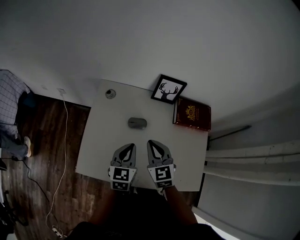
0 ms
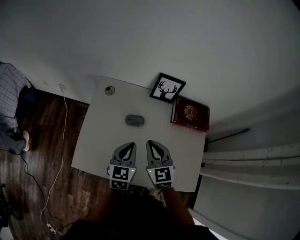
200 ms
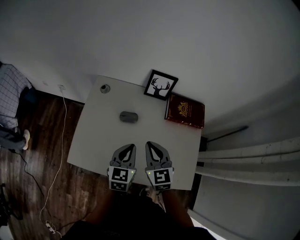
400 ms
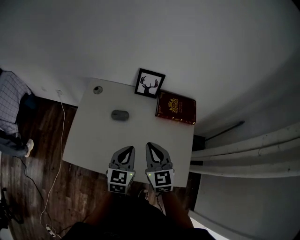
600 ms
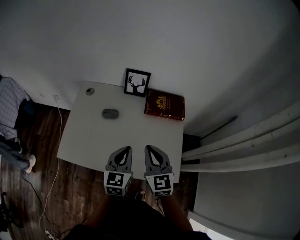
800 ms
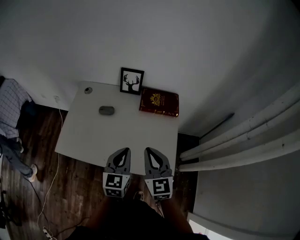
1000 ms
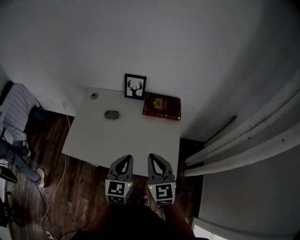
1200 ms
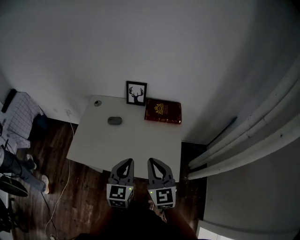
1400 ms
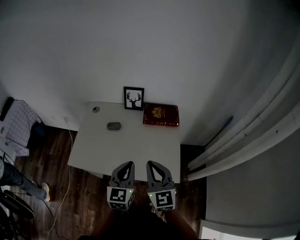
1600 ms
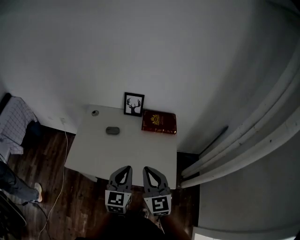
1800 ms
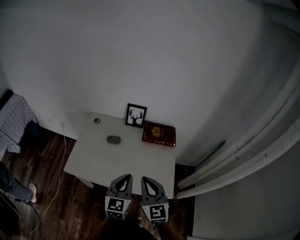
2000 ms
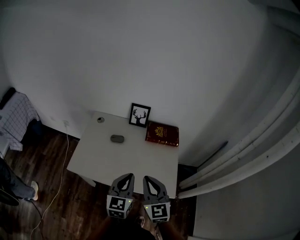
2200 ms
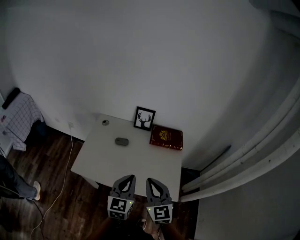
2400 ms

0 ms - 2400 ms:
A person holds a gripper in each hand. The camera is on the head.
0 ms - 1200 ms: The grippers both shift backward, to the right and upward by some 30 cm.
1200 ms - 2400 ms: The left gripper moves upward and to the left, some 10 cm. Meanwhile the right gripper travels to the left and upward by some 10 cm.

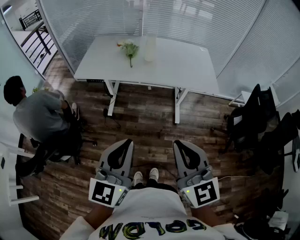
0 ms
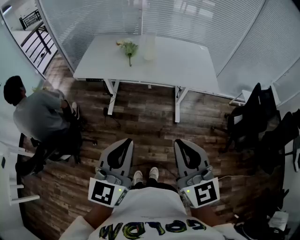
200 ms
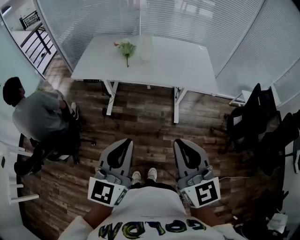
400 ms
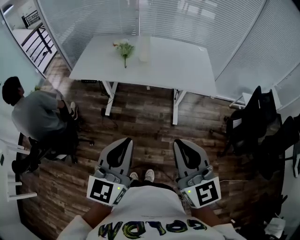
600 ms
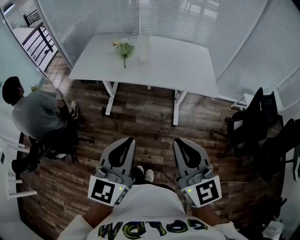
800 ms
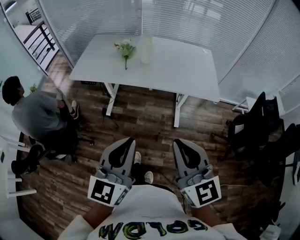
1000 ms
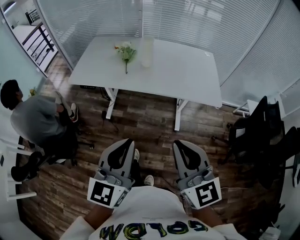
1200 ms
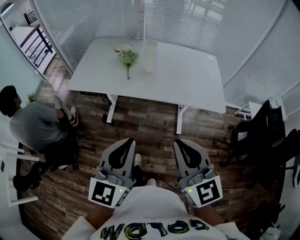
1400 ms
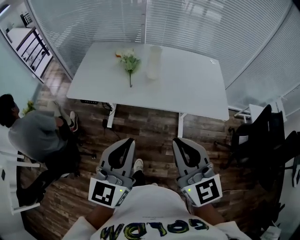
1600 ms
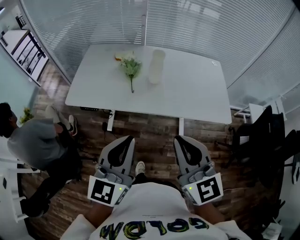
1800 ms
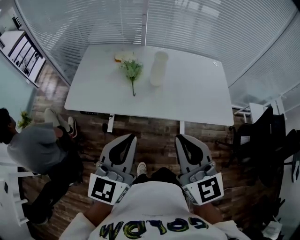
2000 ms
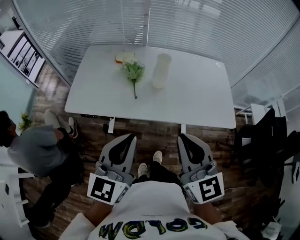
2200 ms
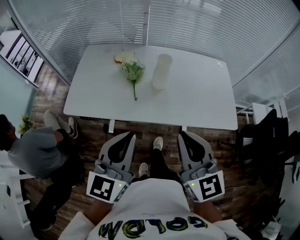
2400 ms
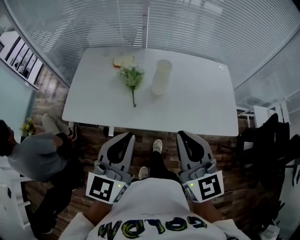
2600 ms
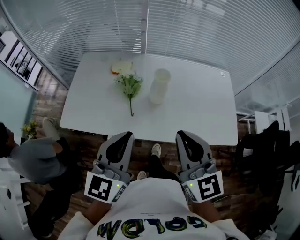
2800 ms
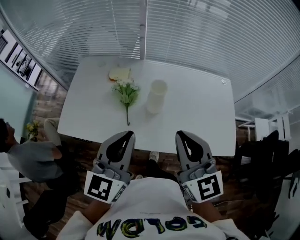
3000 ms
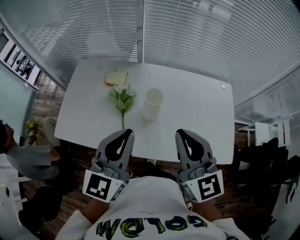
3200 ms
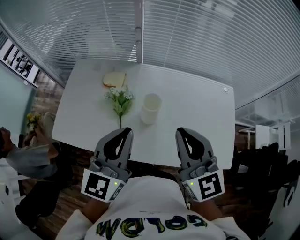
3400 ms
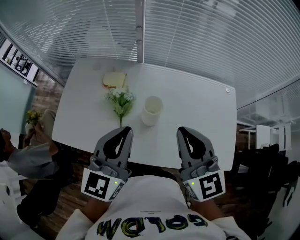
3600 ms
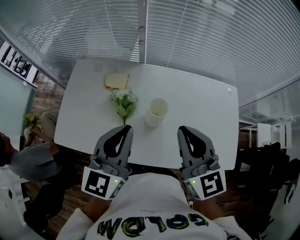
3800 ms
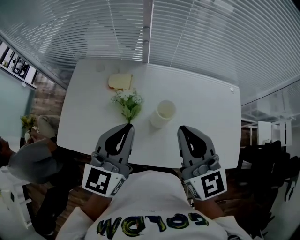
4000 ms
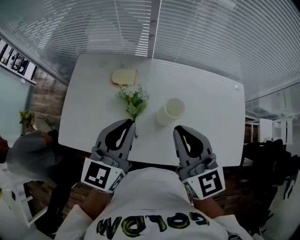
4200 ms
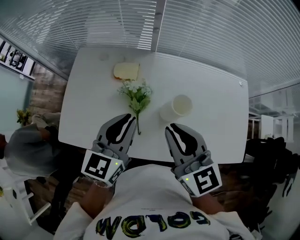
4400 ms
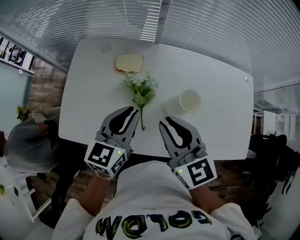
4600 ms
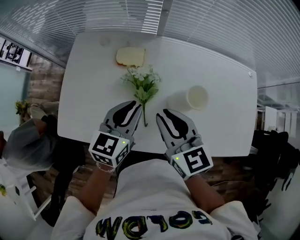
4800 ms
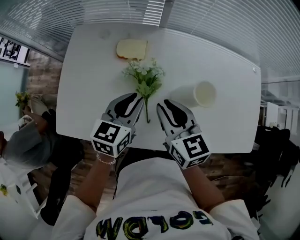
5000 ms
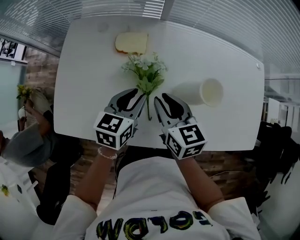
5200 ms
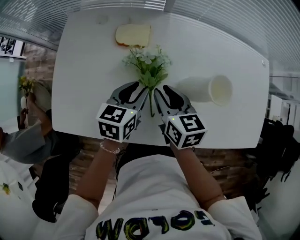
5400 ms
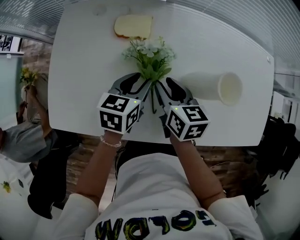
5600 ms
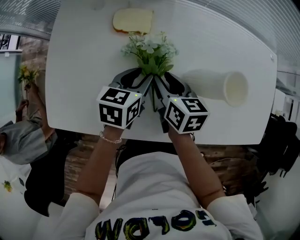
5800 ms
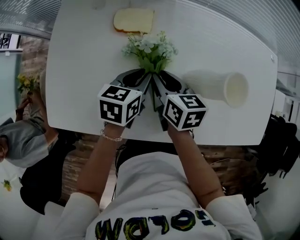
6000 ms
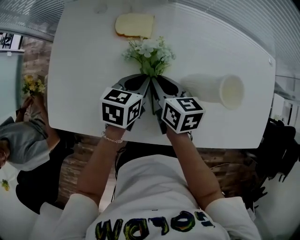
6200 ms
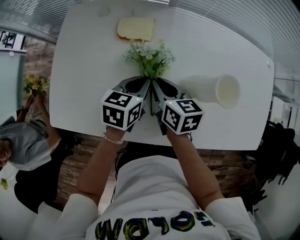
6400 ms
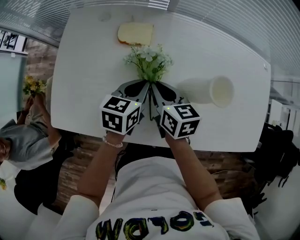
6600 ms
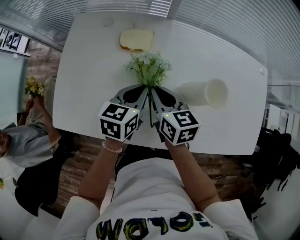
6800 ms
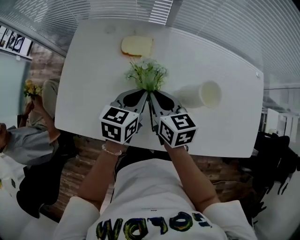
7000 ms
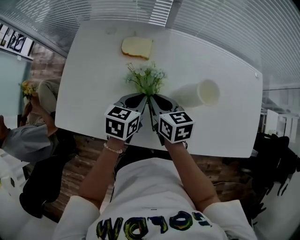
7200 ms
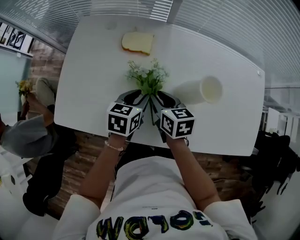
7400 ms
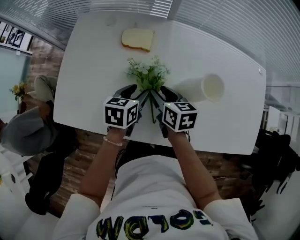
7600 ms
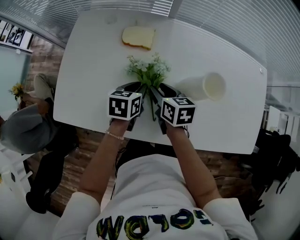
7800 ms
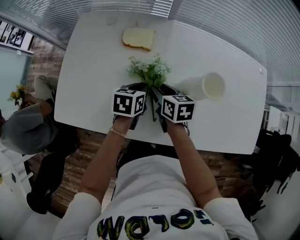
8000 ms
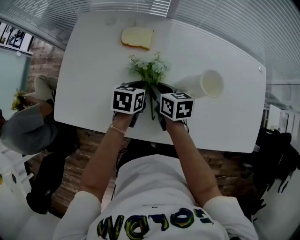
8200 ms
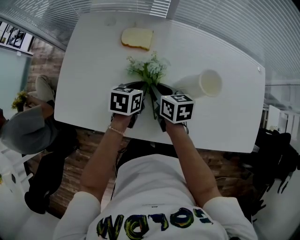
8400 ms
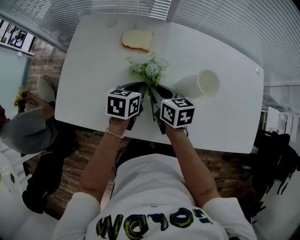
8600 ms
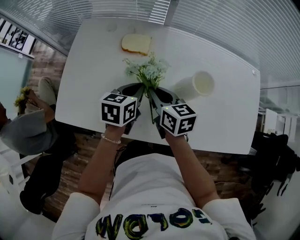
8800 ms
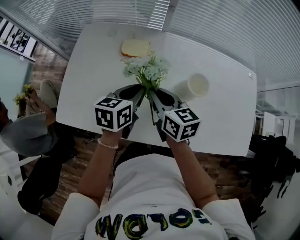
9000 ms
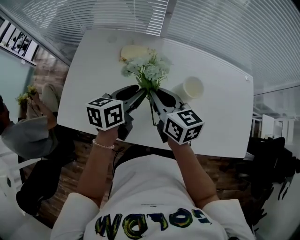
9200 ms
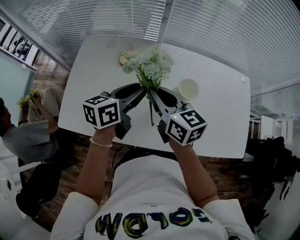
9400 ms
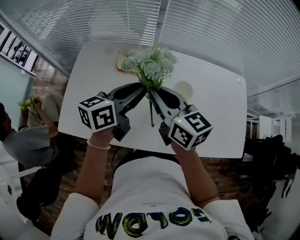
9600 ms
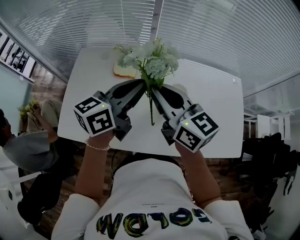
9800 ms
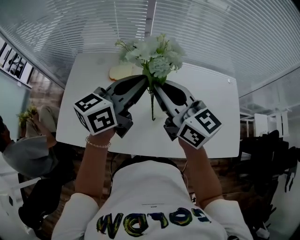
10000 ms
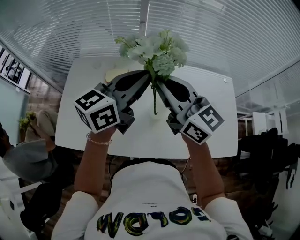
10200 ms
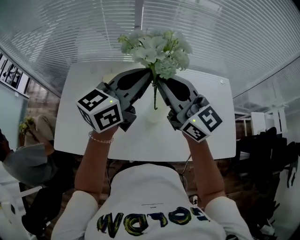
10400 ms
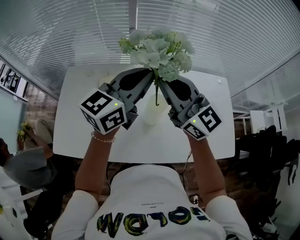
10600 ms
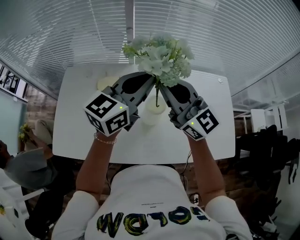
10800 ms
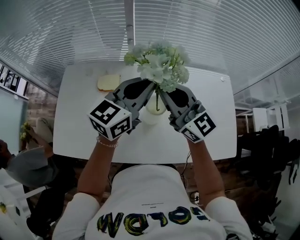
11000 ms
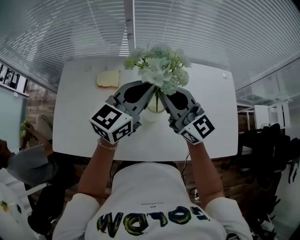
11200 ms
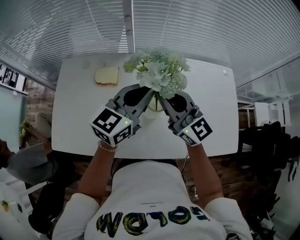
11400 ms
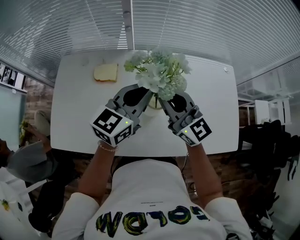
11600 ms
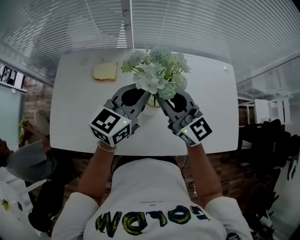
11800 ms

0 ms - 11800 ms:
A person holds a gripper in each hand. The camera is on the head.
0 ms - 1400 ms: The two grippers go approximately 20 cm forward.
1400 ms - 3000 ms: Both grippers move forward, some 40 cm.
3000 ms - 4400 ms: The left gripper travels forward and downward by approximately 20 cm. Meanwhile the right gripper shifts approximately 20 cm forward, to the left and downward.
4400 ms - 6000 ms: Both grippers travel together downward, approximately 25 cm. The right gripper swivels some 40 degrees, while the left gripper changes its angle by approximately 30 degrees.
7400 ms - 8800 ms: The right gripper closes up, while the left gripper closes.
8800 ms - 10400 ms: Both grippers travel together upward, some 30 cm. The left gripper points its fingers approximately 40 degrees further upward, and opens and closes again; the right gripper points its fingers approximately 40 degrees further upward.
10400 ms - 11800 ms: Both grippers move downward and to the right, roughly 10 cm.

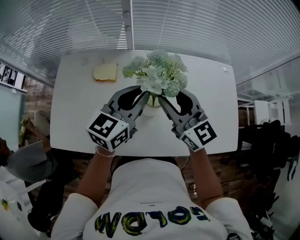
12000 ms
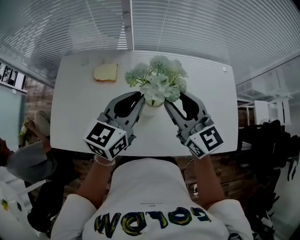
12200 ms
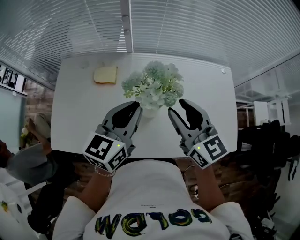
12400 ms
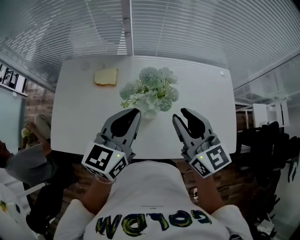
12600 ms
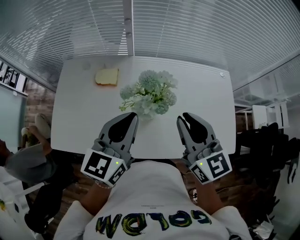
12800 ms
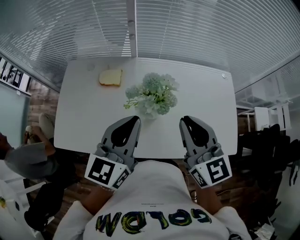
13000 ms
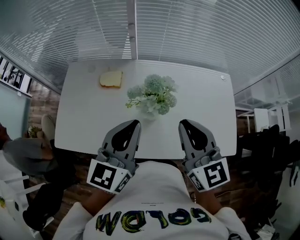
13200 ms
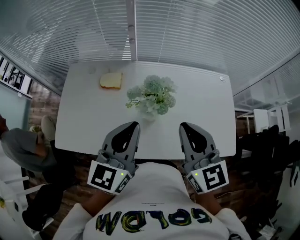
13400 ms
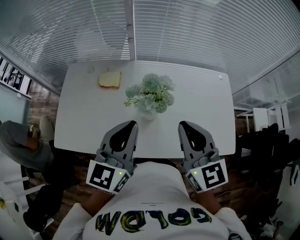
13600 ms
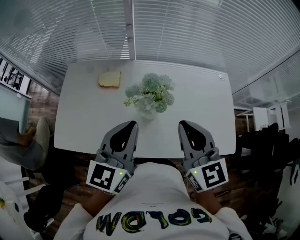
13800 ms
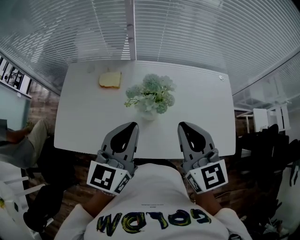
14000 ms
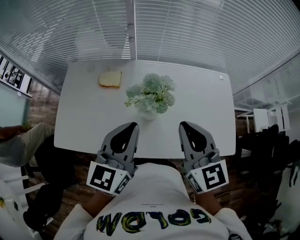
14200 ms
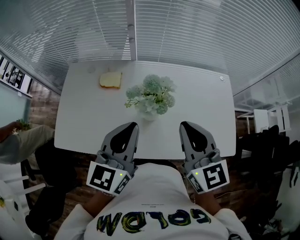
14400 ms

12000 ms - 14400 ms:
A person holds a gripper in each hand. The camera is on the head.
12000 ms - 13200 ms: The two grippers go some 15 cm backward and upward. The right gripper closes.
13200 ms - 14400 ms: The two grippers keep their place.

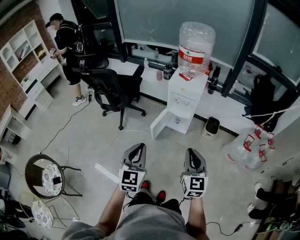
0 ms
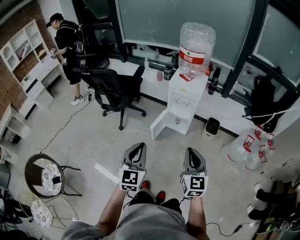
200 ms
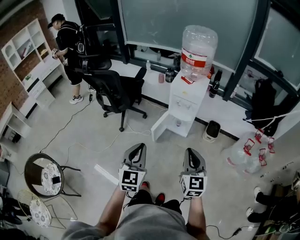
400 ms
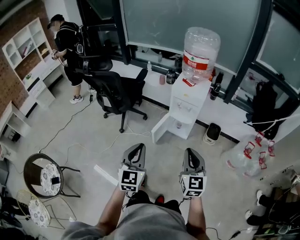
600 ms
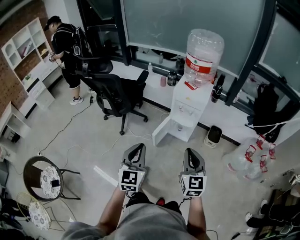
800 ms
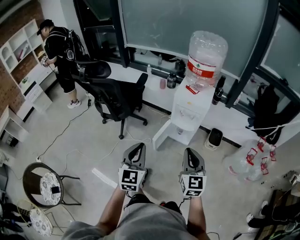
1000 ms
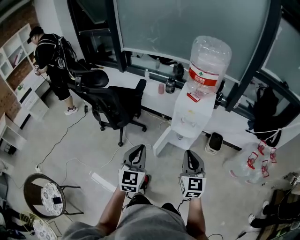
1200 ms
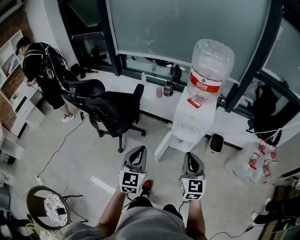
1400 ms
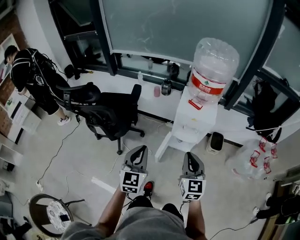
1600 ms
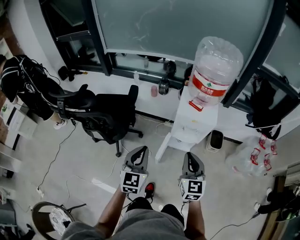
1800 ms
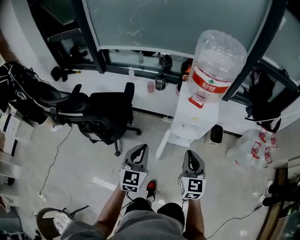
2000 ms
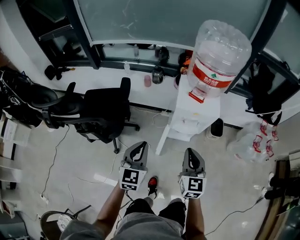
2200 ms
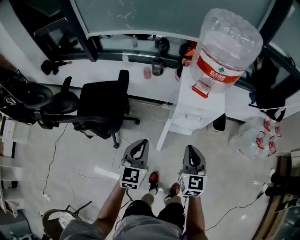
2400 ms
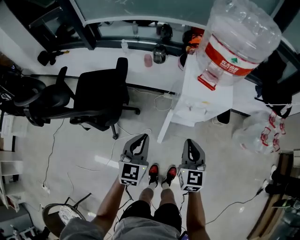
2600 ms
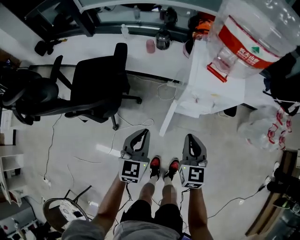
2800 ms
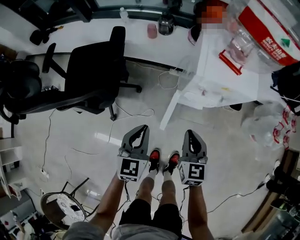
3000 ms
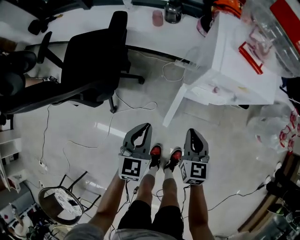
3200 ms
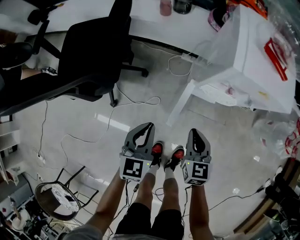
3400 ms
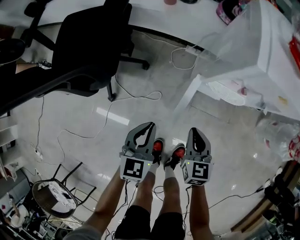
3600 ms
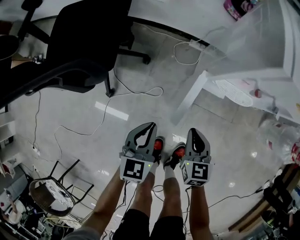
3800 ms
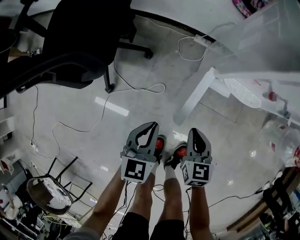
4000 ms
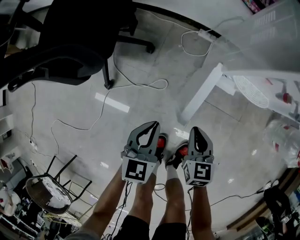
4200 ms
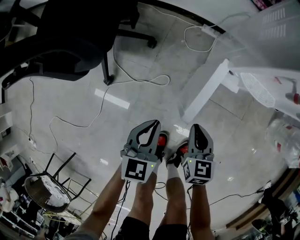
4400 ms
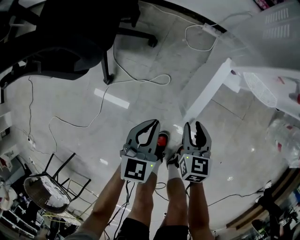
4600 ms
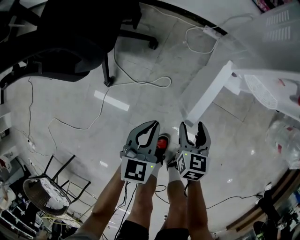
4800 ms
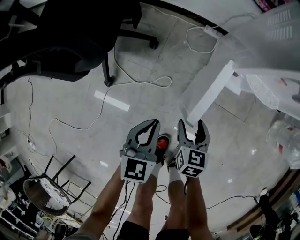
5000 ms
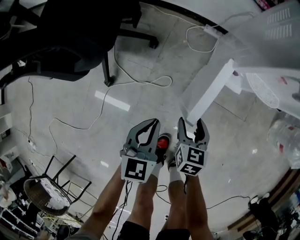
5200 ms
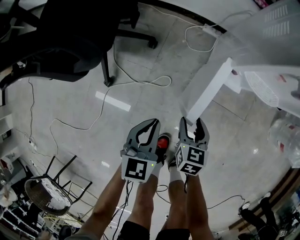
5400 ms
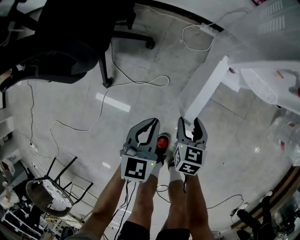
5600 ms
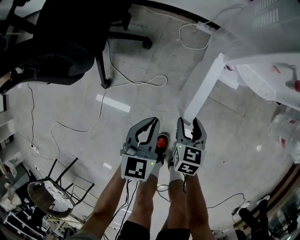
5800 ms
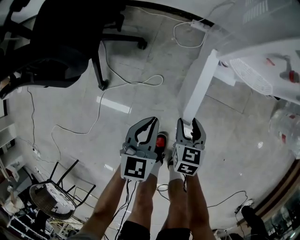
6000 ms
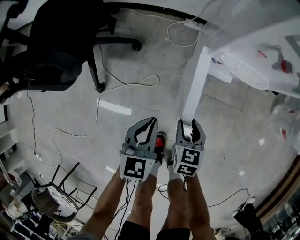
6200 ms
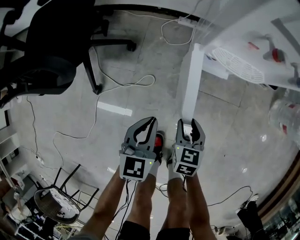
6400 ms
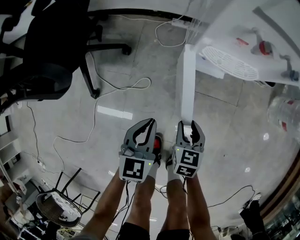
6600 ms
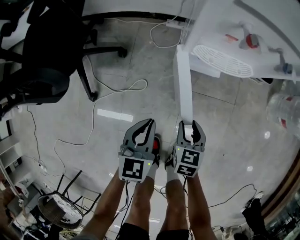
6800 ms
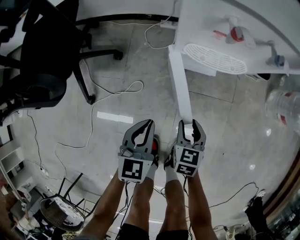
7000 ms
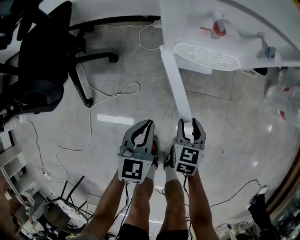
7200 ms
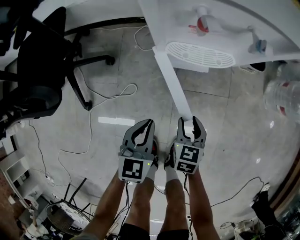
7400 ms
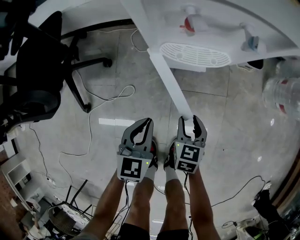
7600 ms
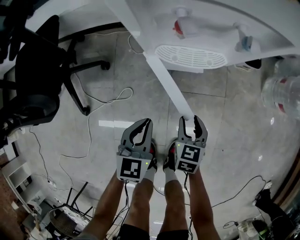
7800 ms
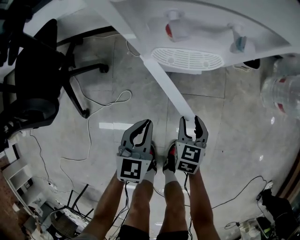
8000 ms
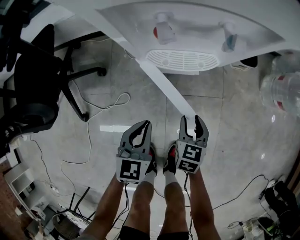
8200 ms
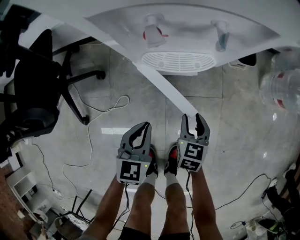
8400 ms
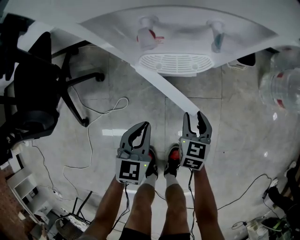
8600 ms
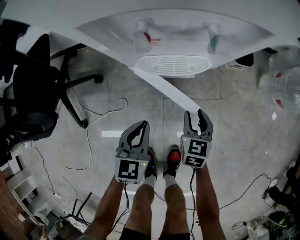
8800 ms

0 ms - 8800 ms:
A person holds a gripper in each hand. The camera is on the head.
0 ms - 1400 ms: Both grippers move forward and to the left, roughly 25 cm.
1400 ms - 3000 ms: The grippers both shift downward and forward by approximately 35 cm. The right gripper turns by about 20 degrees.
3000 ms - 4400 ms: The two grippers go roughly 35 cm downward.
4400 ms - 5800 ms: The right gripper travels downward by roughly 5 cm, and opens its fingers.
5800 ms - 7400 ms: Both grippers travel together to the right, about 15 cm.
7400 ms - 8800 ms: The right gripper goes approximately 10 cm forward and to the right, while the left gripper is displaced forward by roughly 5 cm.
